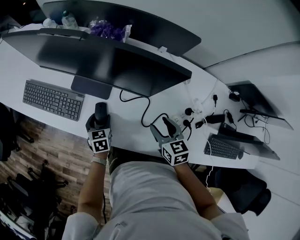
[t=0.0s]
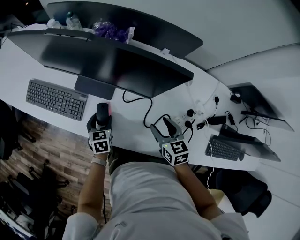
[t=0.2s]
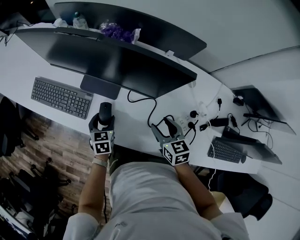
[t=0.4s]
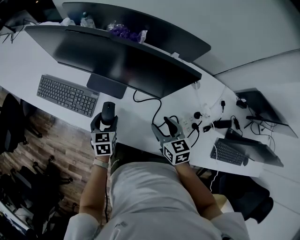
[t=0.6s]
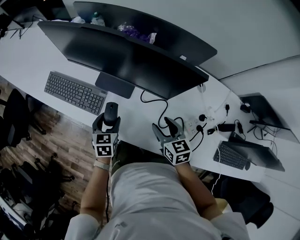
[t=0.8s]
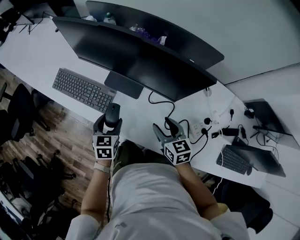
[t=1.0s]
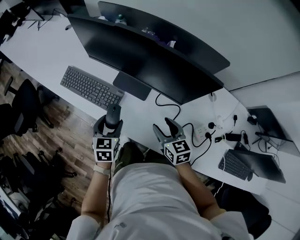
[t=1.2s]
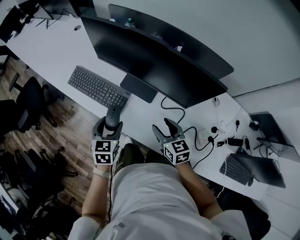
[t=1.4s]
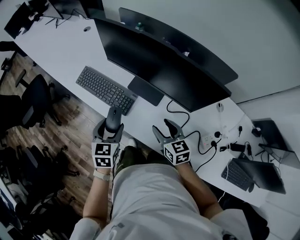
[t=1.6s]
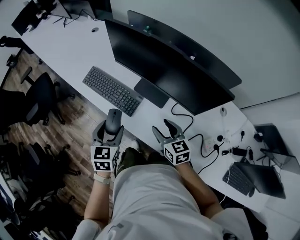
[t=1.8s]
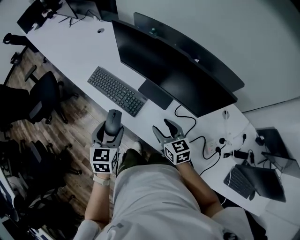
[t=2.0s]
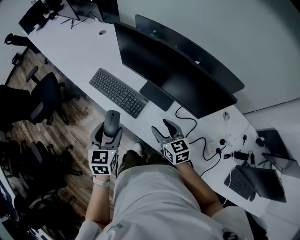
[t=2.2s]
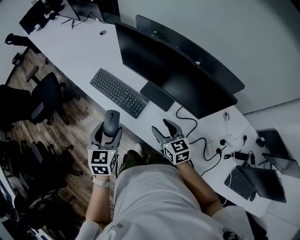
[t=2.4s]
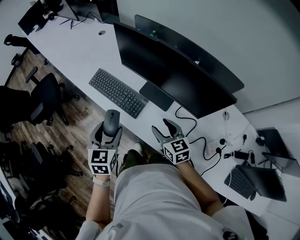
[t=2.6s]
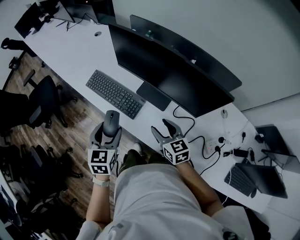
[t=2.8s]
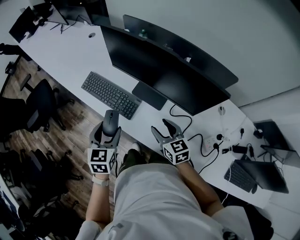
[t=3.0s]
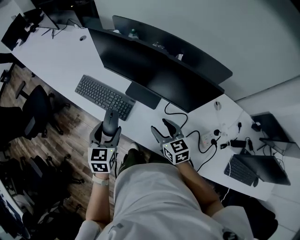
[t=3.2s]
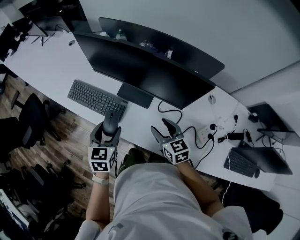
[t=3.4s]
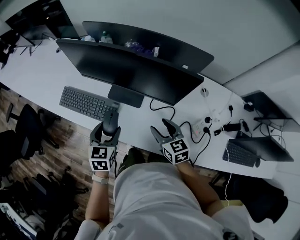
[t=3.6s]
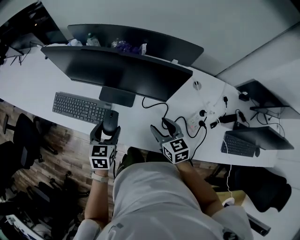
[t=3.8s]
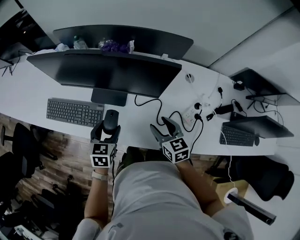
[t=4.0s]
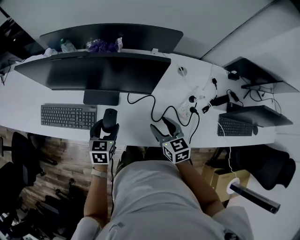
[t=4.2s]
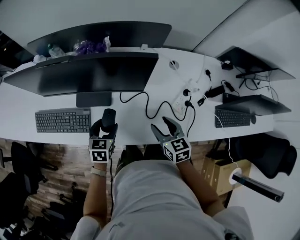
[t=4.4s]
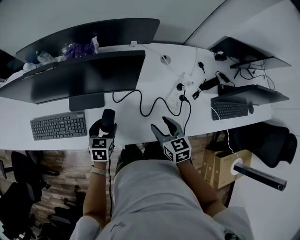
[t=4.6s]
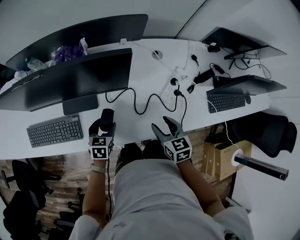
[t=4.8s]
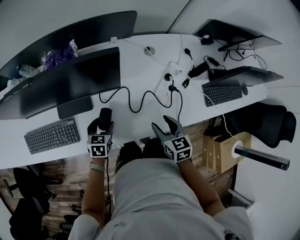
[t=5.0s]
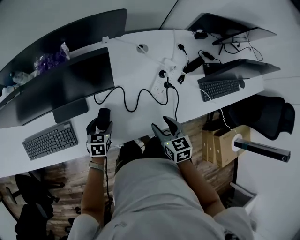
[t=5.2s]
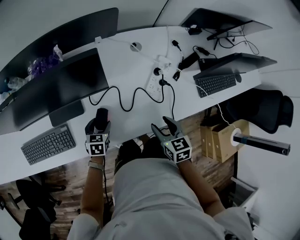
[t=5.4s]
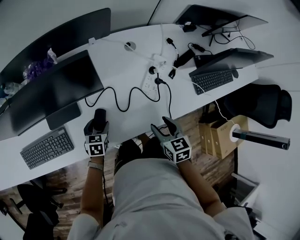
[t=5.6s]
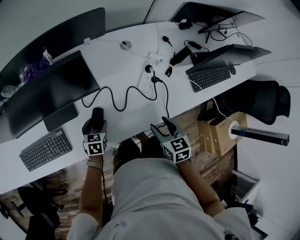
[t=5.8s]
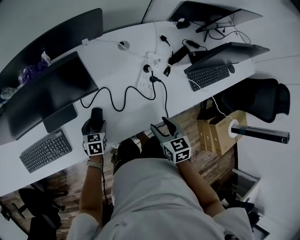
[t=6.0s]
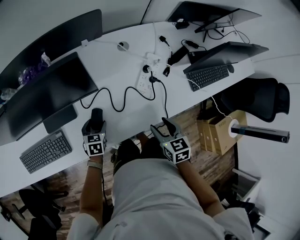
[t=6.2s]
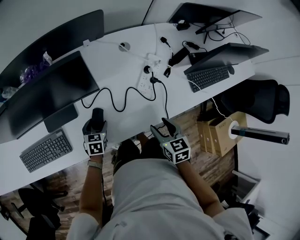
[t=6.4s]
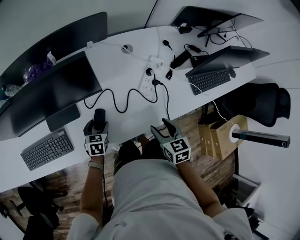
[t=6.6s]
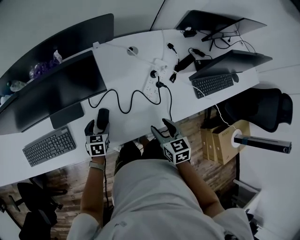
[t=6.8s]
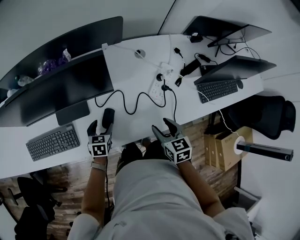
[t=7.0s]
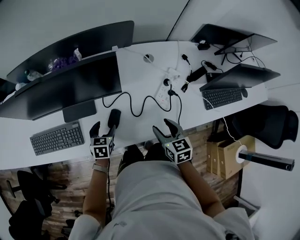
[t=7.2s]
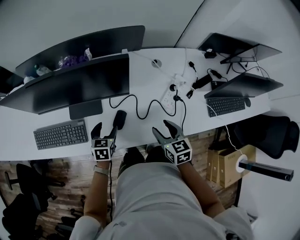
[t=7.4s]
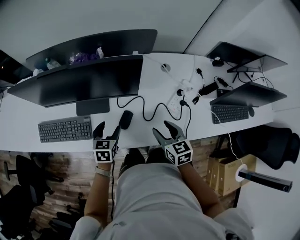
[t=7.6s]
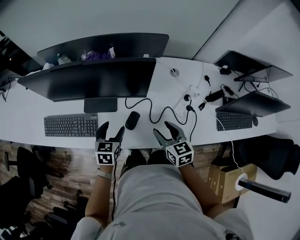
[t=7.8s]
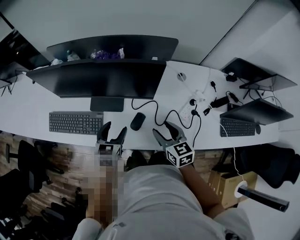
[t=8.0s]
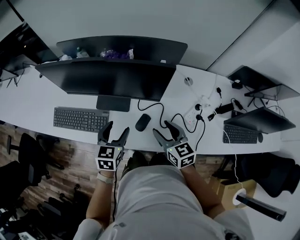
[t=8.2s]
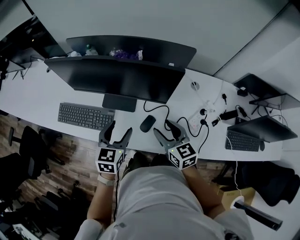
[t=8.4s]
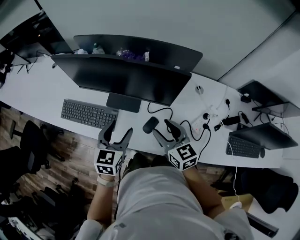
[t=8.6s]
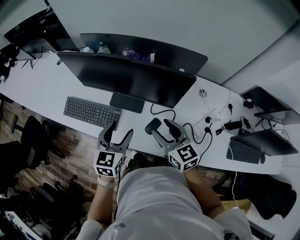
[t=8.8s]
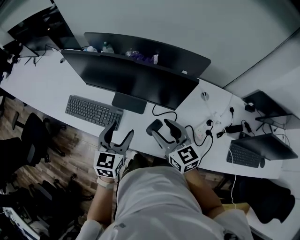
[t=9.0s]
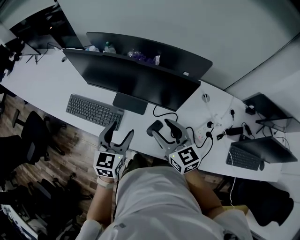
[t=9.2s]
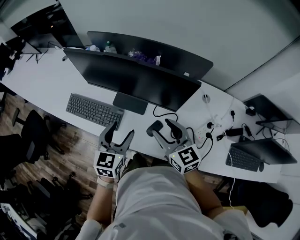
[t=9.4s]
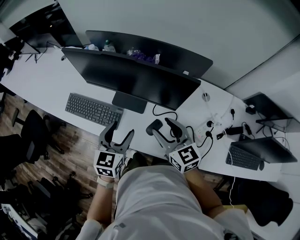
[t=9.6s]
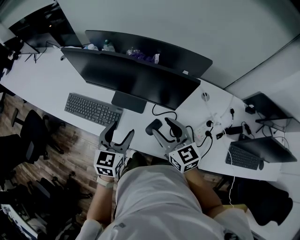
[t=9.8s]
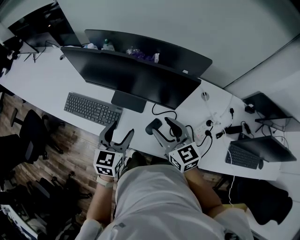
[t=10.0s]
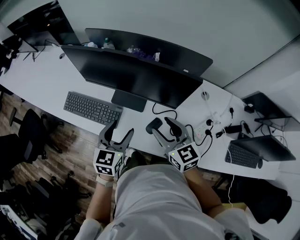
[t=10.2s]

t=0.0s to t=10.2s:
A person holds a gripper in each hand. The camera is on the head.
t=0.0s to t=1.4s: The left gripper goes some 20 cm upward and to the left. The right gripper is displaced to the left by roughly 15 cm.
t=1.4s to t=3.0s: The left gripper shifts roughly 10 cm upward and to the left. Meanwhile the right gripper changes place by roughly 5 cm.
t=3.0s to t=4.4s: The left gripper shifts by approximately 25 cm, and rotates about 40 degrees. The right gripper moves roughly 20 cm, and turns by some 40 degrees.
t=4.4s to t=5.8s: The left gripper travels downward and to the right by about 15 cm, while the right gripper shifts some 15 cm to the right and backward, and swivels roughly 20 degrees.
t=5.8s to t=7.2s: The right gripper shifts by approximately 5 cm. Meanwhile the left gripper moves upward, approximately 5 cm.
t=7.2s to t=8.8s: The right gripper moves approximately 25 cm, and turns by roughly 40 degrees. Meanwhile the left gripper travels upward by roughly 20 cm, and swivels about 30 degrees.
t=8.8s to t=10.2s: The grippers make only small movements.

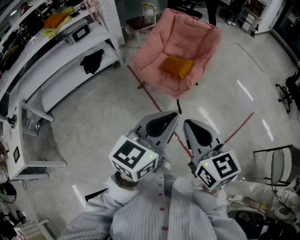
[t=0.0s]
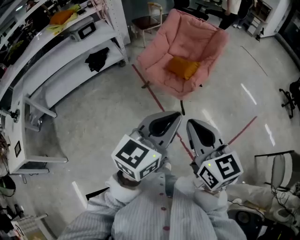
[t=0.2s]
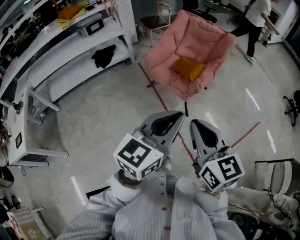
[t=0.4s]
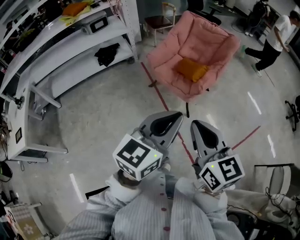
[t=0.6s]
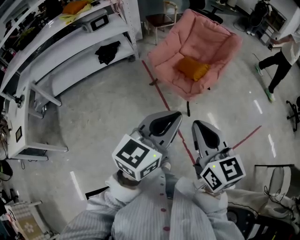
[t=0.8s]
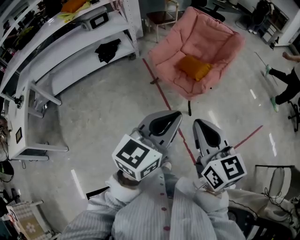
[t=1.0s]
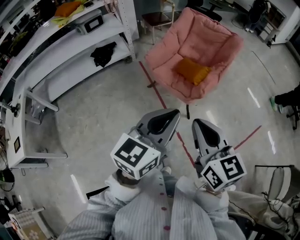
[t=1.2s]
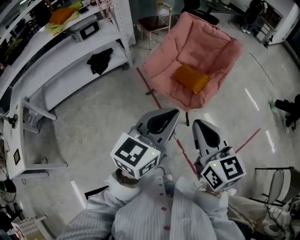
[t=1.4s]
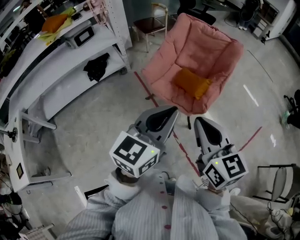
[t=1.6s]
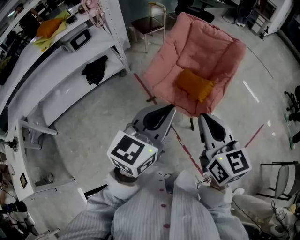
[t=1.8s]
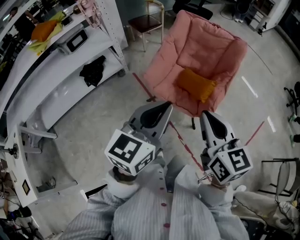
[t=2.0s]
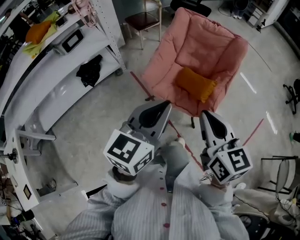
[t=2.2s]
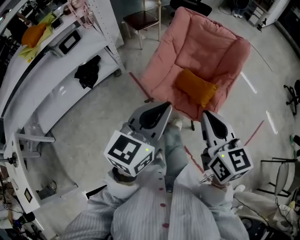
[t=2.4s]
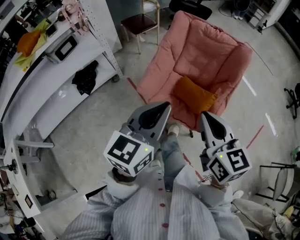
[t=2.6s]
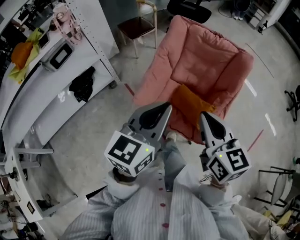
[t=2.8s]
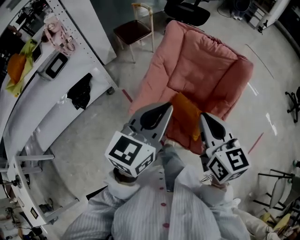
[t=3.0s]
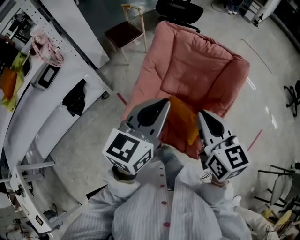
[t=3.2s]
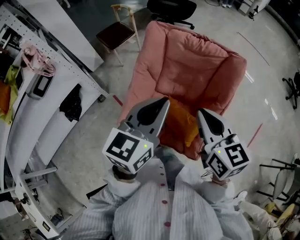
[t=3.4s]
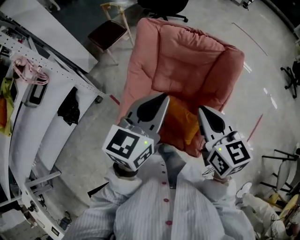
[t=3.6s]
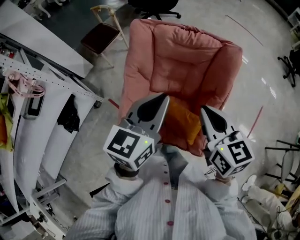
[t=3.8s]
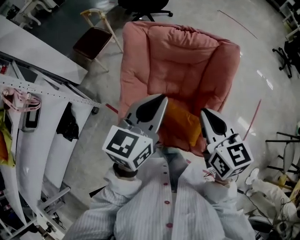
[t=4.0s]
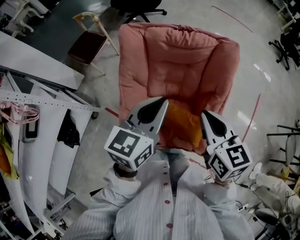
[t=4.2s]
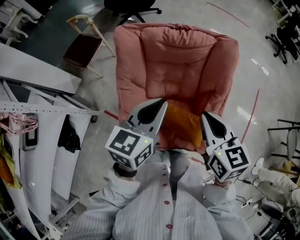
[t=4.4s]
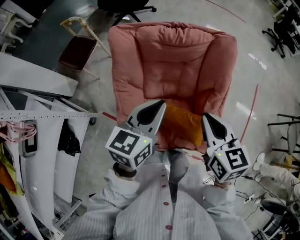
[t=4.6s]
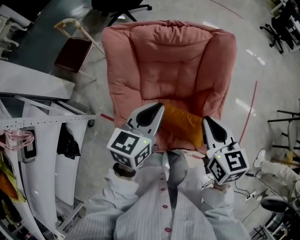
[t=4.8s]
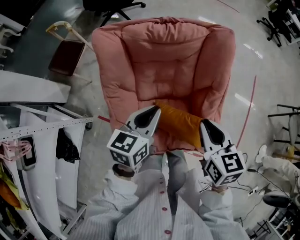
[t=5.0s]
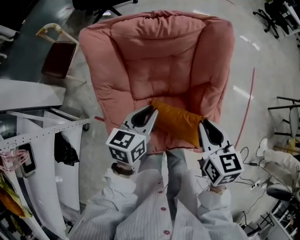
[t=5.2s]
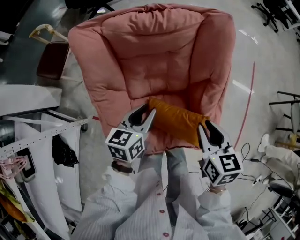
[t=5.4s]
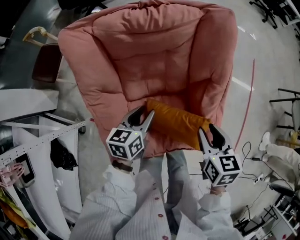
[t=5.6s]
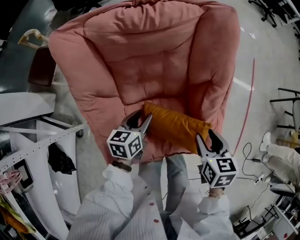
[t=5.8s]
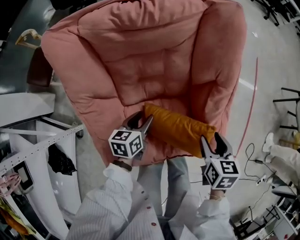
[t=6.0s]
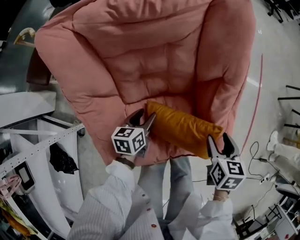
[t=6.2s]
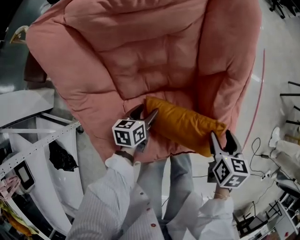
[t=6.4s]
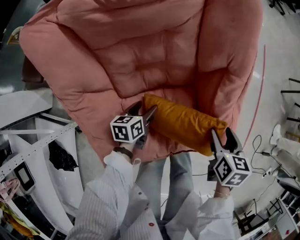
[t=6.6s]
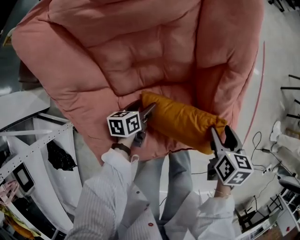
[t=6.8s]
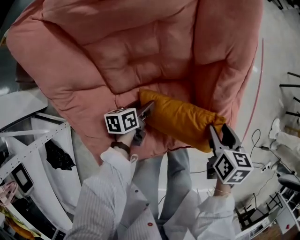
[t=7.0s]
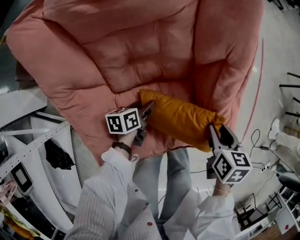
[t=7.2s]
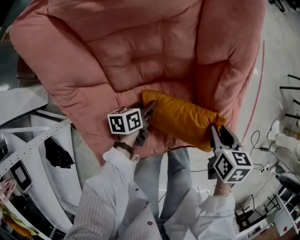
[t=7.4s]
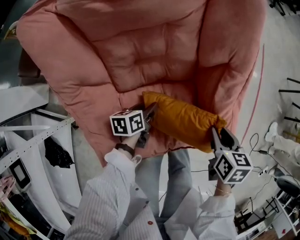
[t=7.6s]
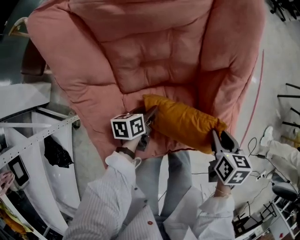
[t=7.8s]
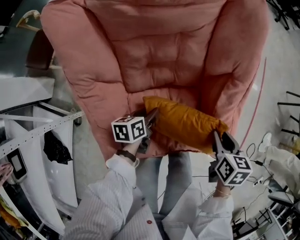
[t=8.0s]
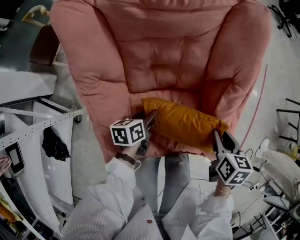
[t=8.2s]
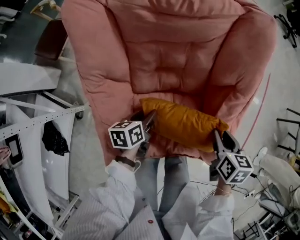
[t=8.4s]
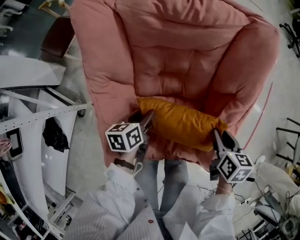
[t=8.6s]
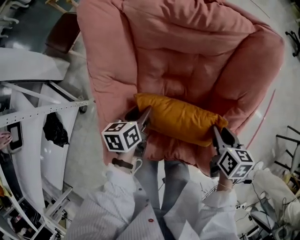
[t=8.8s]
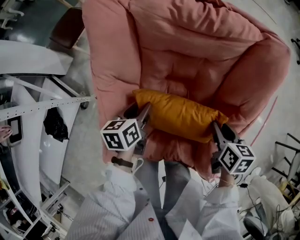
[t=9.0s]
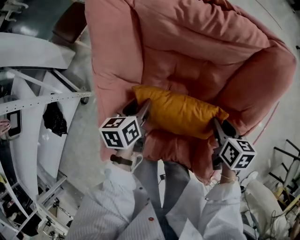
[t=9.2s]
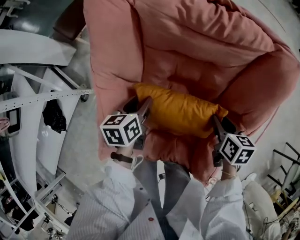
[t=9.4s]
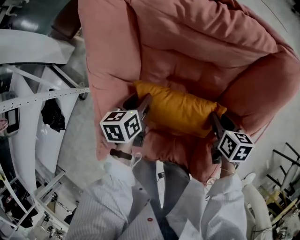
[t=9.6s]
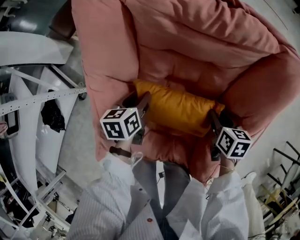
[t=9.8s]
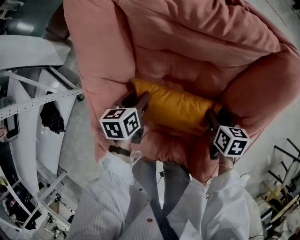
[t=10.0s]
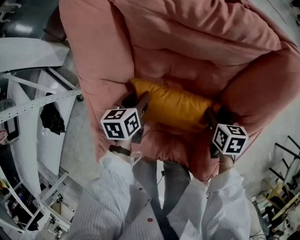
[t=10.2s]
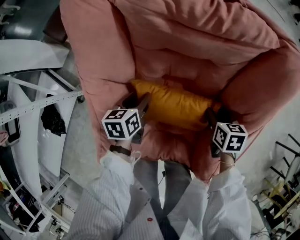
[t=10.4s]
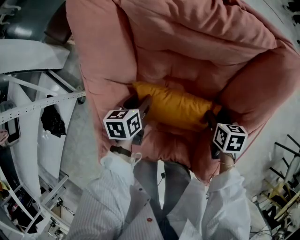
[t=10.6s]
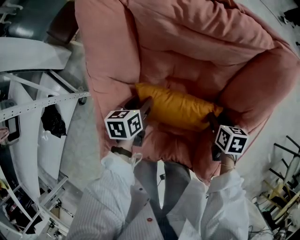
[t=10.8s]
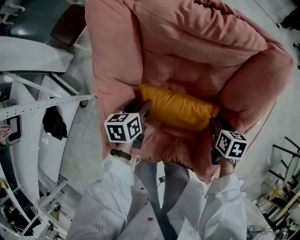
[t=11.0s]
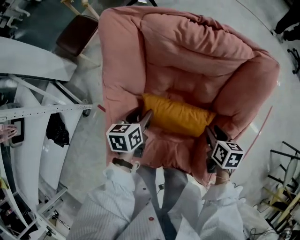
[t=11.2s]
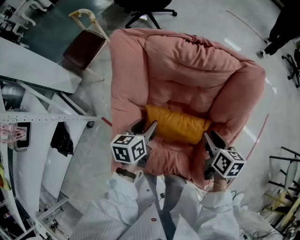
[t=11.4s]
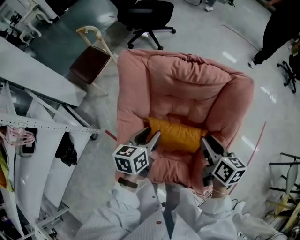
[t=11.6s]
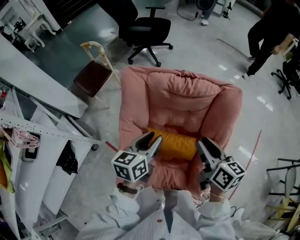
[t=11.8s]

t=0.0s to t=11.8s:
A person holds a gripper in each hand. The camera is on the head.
t=0.0s to t=1.4s: The right gripper heads forward, covering approximately 15 cm. The left gripper is displaced forward and to the left by some 15 cm.
t=1.4s to t=3.0s: Both grippers are carried forward, about 40 cm.
t=3.0s to t=4.4s: Both grippers travel together forward and downward, some 20 cm. The left gripper turns by some 30 degrees, while the right gripper turns by approximately 30 degrees.
t=4.4s to t=6.0s: The left gripper moves downward, some 40 cm, turns by some 30 degrees, and opens up. Meanwhile the right gripper goes roughly 30 cm downward and to the right, swivels roughly 40 degrees, and opens up.
t=6.0s to t=7.4s: The left gripper is displaced downward by approximately 10 cm, and opens, then closes once more; the right gripper travels downward by about 5 cm.
t=7.4s to t=8.8s: The right gripper changes place by some 10 cm. Meanwhile the left gripper goes about 15 cm upward, and swivels some 30 degrees.
t=8.8s to t=10.4s: The left gripper heads forward, covering approximately 5 cm, while the right gripper heads downward and forward, covering approximately 15 cm.
t=10.4s to t=11.8s: The right gripper goes up and down, about 15 cm each way, reversing 2 times, and tilts its fingers some 50 degrees upward, while the left gripper swings up and down, some 15 cm each way, with 2 reversals, and changes its angle by some 20 degrees.

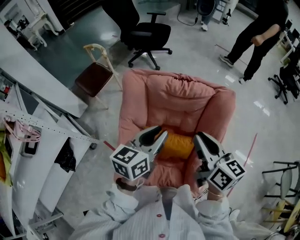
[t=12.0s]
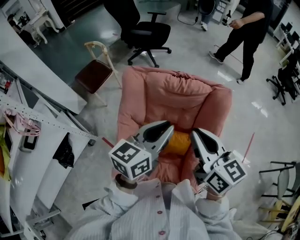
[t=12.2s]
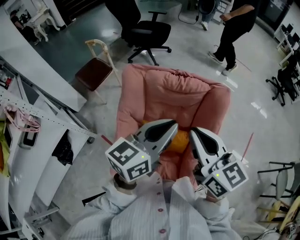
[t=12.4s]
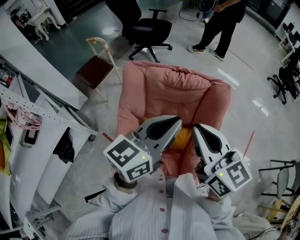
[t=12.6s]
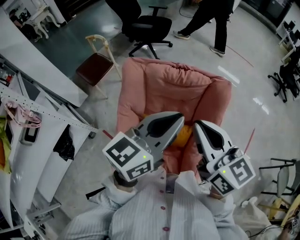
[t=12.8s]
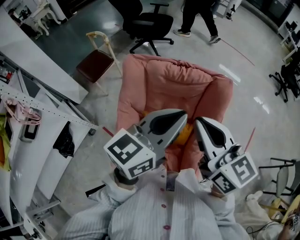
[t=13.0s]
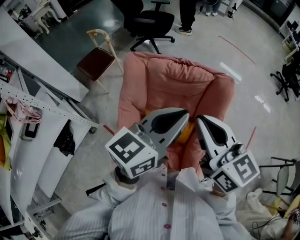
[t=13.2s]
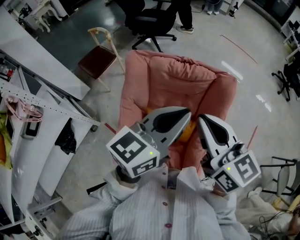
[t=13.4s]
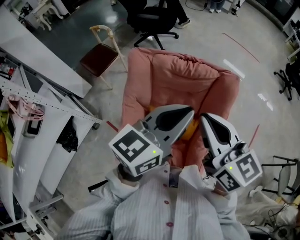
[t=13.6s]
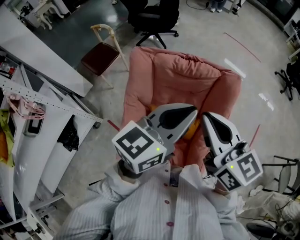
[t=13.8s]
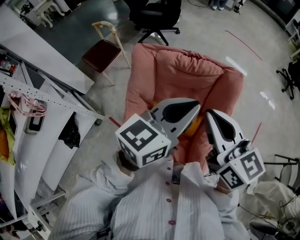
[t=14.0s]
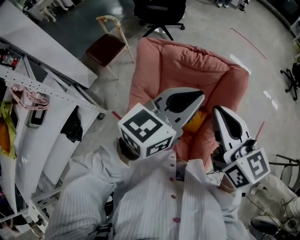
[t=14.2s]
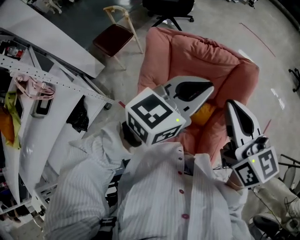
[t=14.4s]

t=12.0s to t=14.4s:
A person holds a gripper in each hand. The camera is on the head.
t=12.0s to t=13.2s: The left gripper is displaced upward and to the right by some 15 cm. The right gripper heads upward, covering some 10 cm.
t=13.2s to t=14.4s: There are only small adjustments of the grippers.
